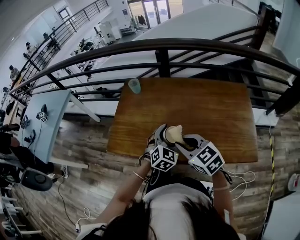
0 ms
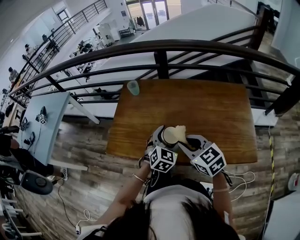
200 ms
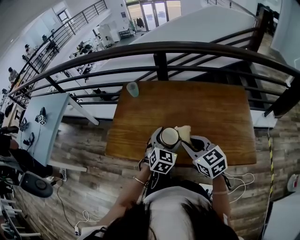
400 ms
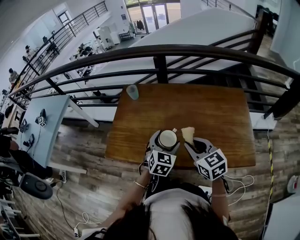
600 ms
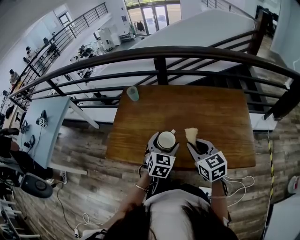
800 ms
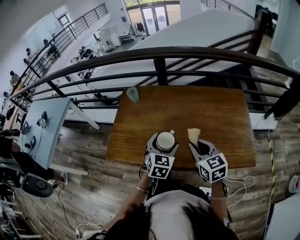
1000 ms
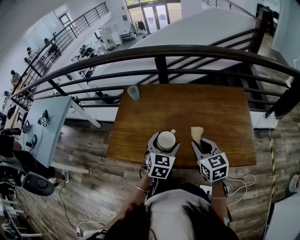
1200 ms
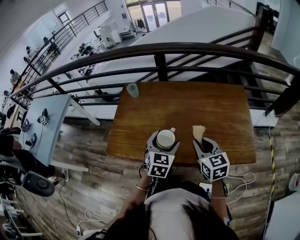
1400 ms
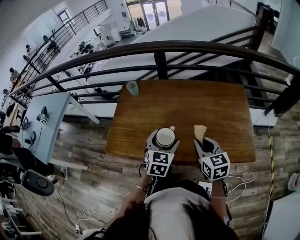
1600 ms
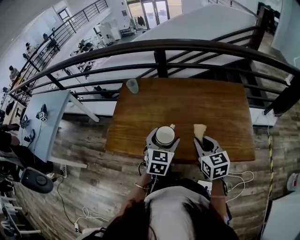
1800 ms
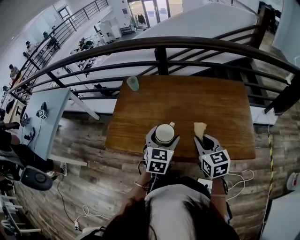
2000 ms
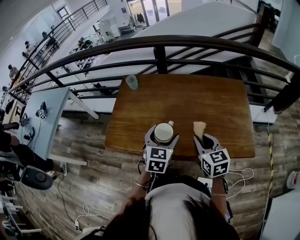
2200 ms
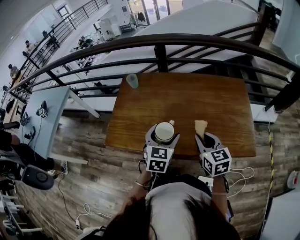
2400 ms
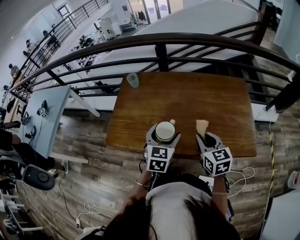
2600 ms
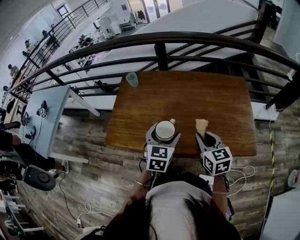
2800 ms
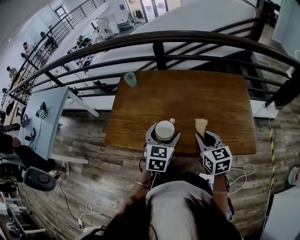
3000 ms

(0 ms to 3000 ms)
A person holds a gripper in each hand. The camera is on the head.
0 ms - 1600 ms: The left gripper shifts by roughly 5 cm, and changes its angle by roughly 20 degrees. Meanwhile the right gripper travels to the right by approximately 10 cm, and changes its angle by some 30 degrees.
1600 ms - 3000 ms: The grippers stay close to where they were, moving slightly.

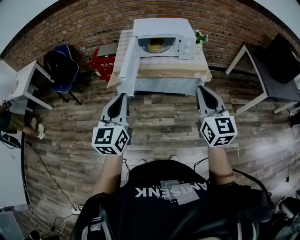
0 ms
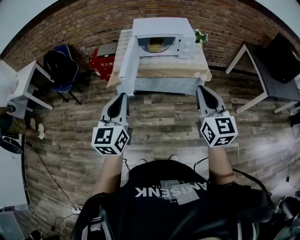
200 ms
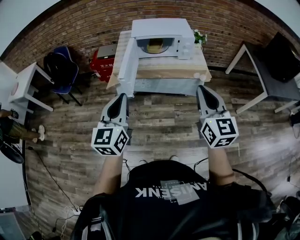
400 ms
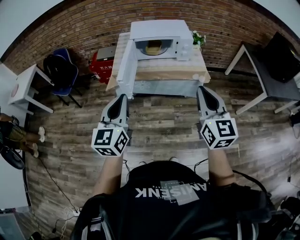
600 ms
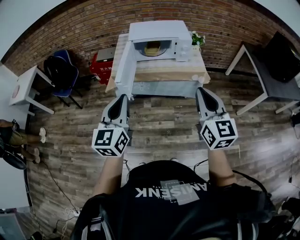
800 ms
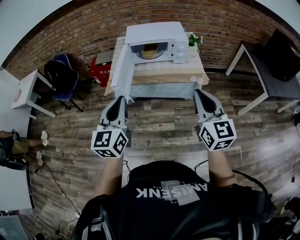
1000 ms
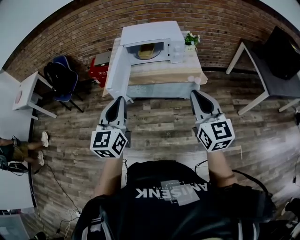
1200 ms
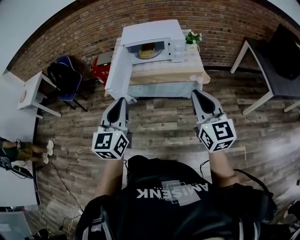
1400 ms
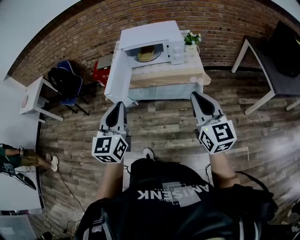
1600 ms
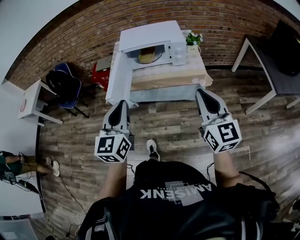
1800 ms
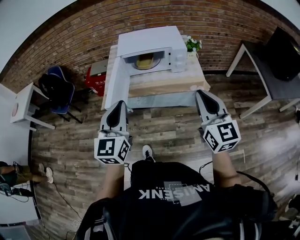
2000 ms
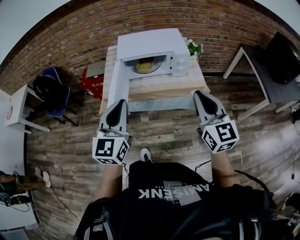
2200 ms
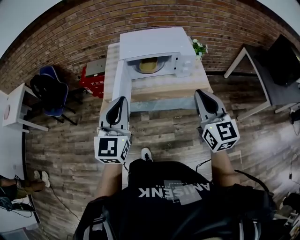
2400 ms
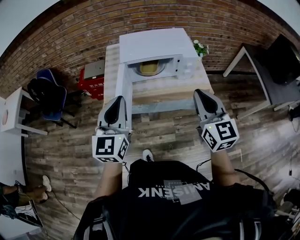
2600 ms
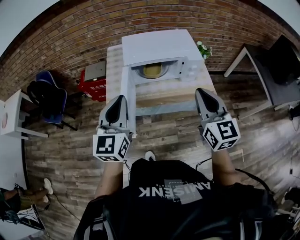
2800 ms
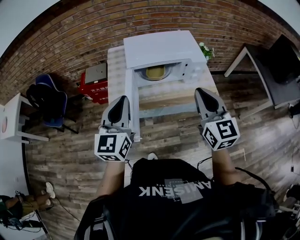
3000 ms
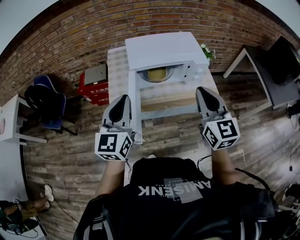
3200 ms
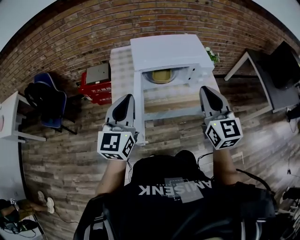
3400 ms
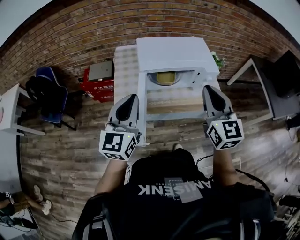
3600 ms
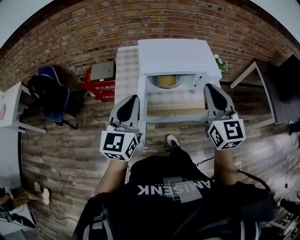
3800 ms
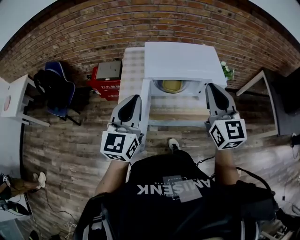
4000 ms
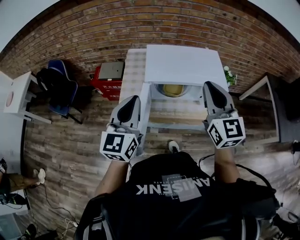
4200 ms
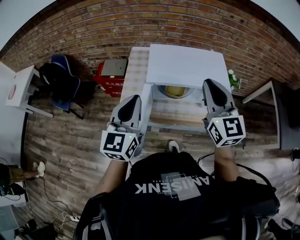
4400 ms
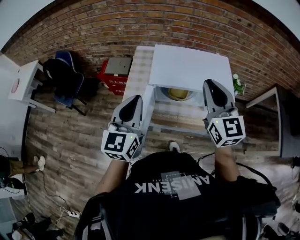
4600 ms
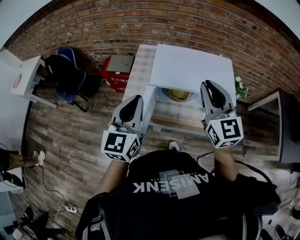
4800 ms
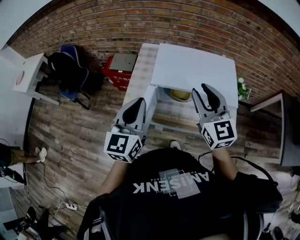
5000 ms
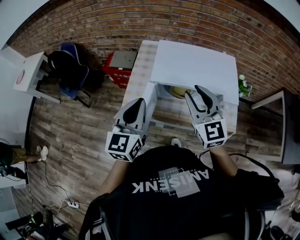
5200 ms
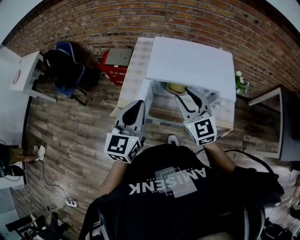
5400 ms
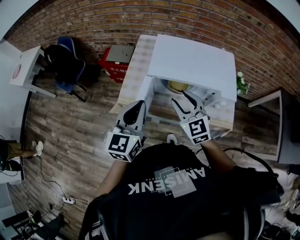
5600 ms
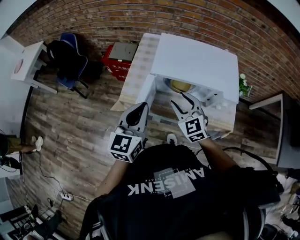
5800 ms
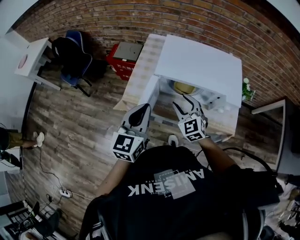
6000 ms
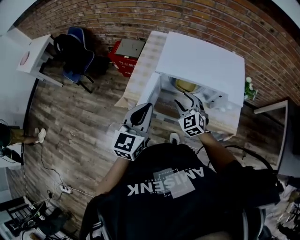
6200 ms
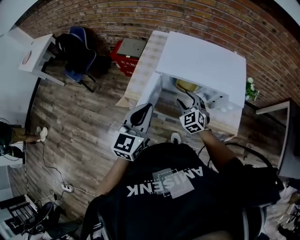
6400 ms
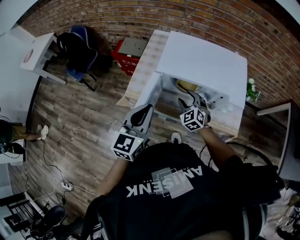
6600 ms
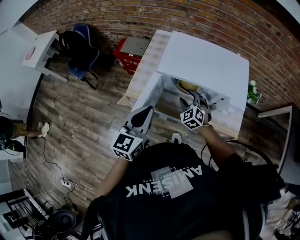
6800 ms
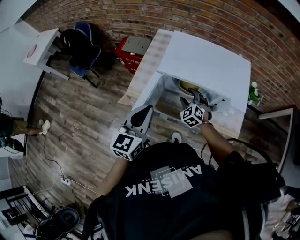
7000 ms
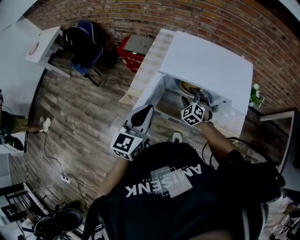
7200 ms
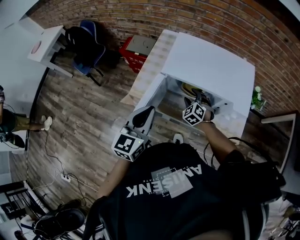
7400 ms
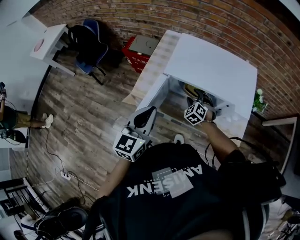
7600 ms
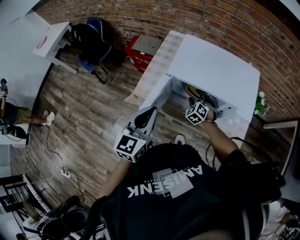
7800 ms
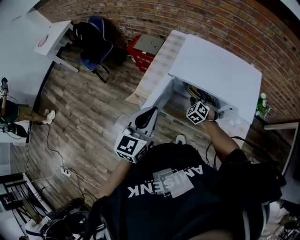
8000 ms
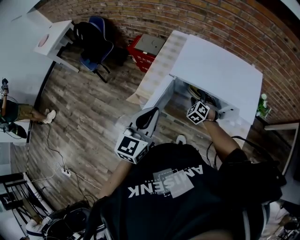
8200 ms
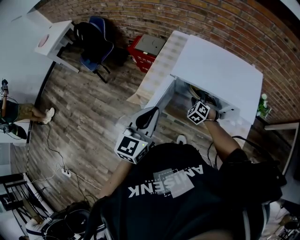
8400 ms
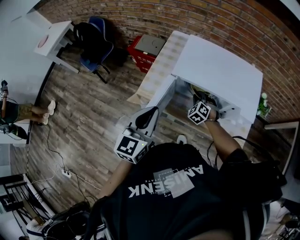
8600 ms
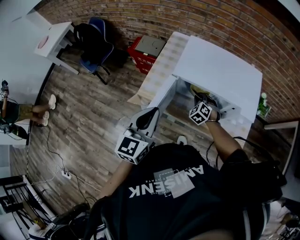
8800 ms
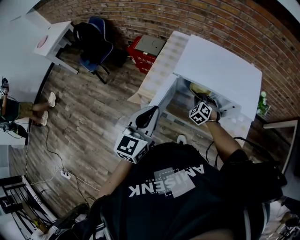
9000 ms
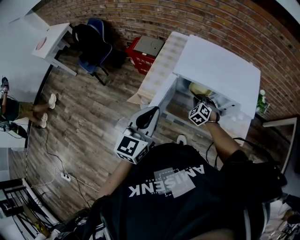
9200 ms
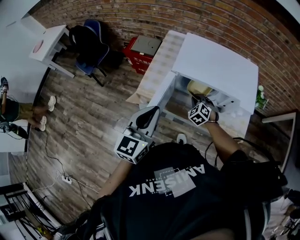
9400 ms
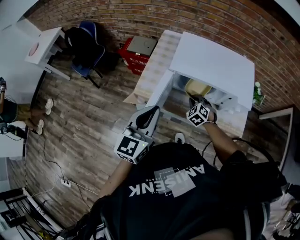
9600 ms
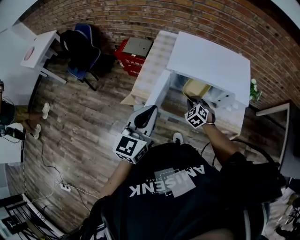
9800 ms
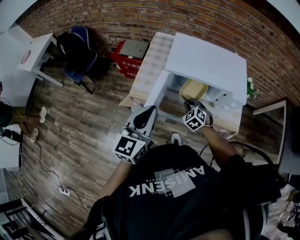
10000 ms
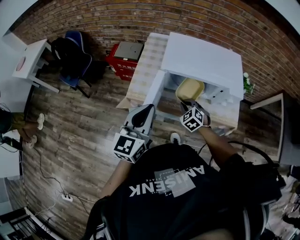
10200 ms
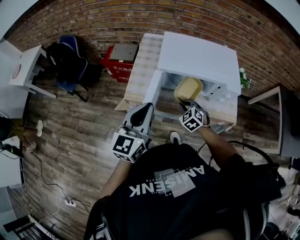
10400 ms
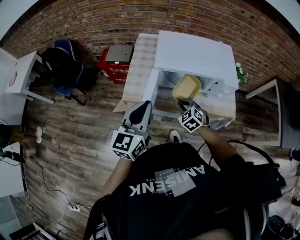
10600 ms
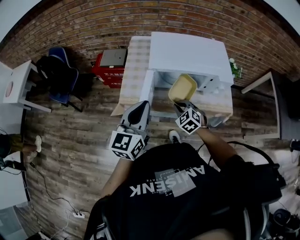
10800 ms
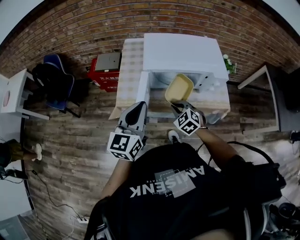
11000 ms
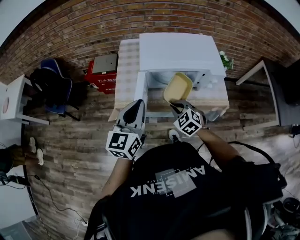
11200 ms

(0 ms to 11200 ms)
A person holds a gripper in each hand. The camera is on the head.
0 ms - 1600 ms: The grippers both shift to the right by some 15 cm.
1600 ms - 3200 ms: The two grippers go about 35 cm forward and to the left.
3200 ms - 4800 ms: The right gripper heads forward, covering approximately 20 cm, and changes its angle by some 20 degrees, while the left gripper shifts some 10 cm forward.
4800 ms - 6400 ms: The left gripper shifts about 10 cm downward and backward; the right gripper moves downward, roughly 30 cm, swivels about 40 degrees, and opens its fingers.
6400 ms - 8000 ms: The right gripper is displaced downward and forward by some 10 cm, and swivels roughly 20 degrees.
8000 ms - 9600 ms: The right gripper moves backward, about 5 cm, and closes up.
9600 ms - 11200 ms: The right gripper travels backward and upward by roughly 15 cm.

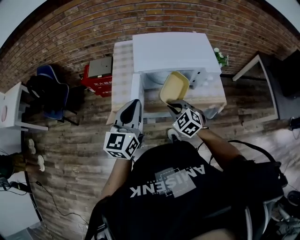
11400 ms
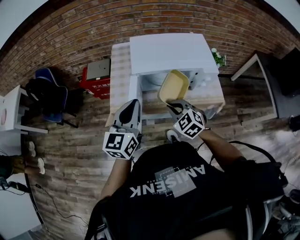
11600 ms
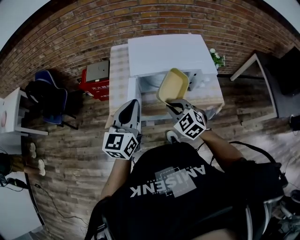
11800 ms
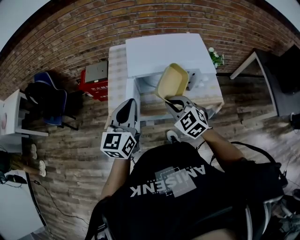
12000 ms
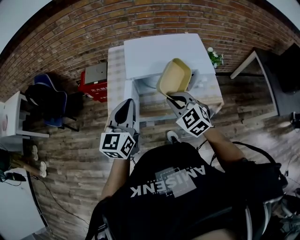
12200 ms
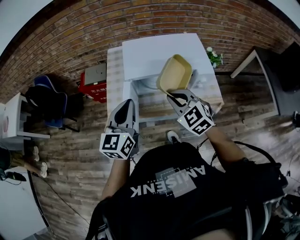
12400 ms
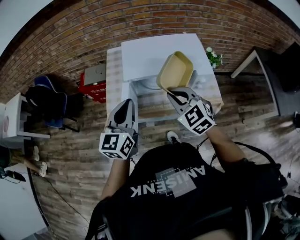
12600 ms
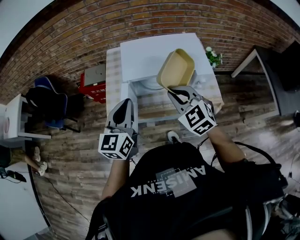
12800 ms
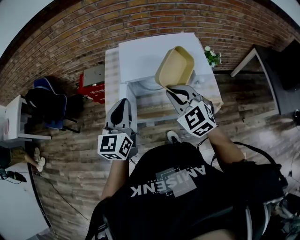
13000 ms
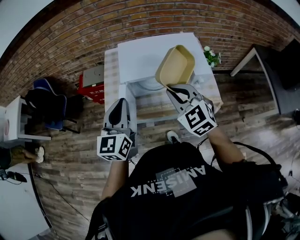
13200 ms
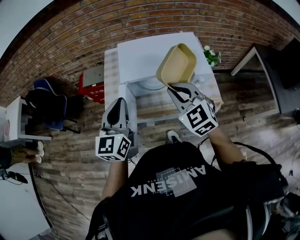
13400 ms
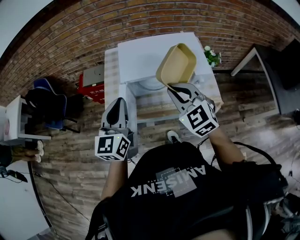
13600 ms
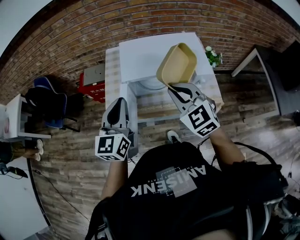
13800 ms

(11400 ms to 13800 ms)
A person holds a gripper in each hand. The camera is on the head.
11400 ms - 12600 ms: The right gripper is displaced upward and to the right by approximately 15 cm. The left gripper changes place by roughly 5 cm.
12600 ms - 13800 ms: The grippers stay close to where they were, moving slightly.

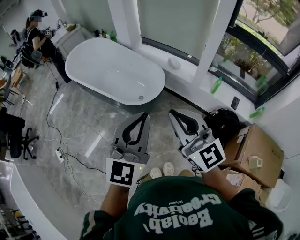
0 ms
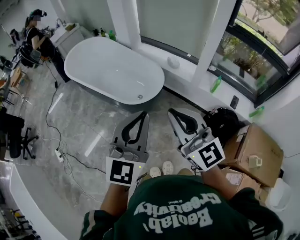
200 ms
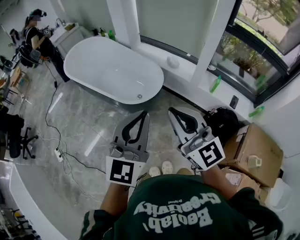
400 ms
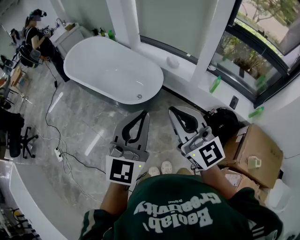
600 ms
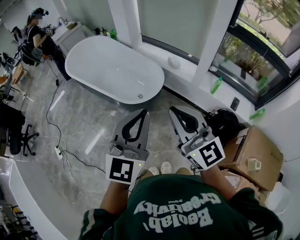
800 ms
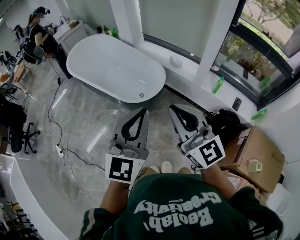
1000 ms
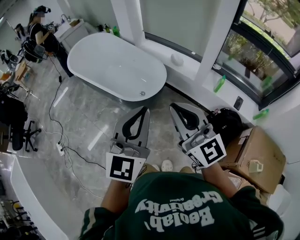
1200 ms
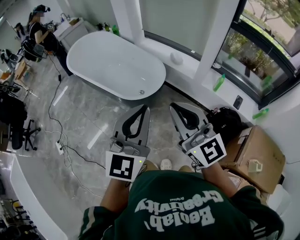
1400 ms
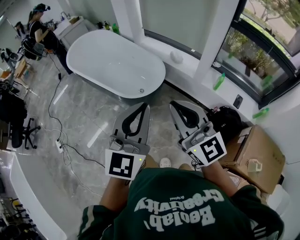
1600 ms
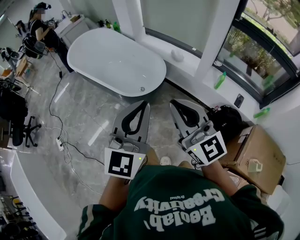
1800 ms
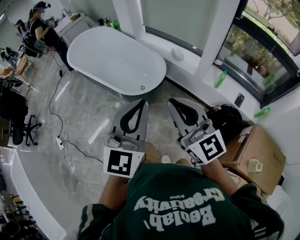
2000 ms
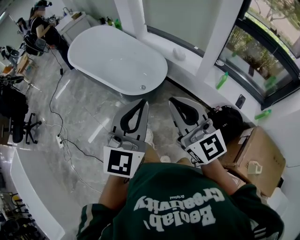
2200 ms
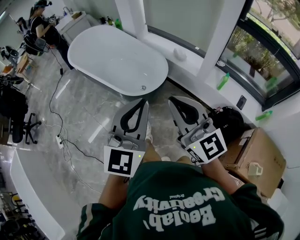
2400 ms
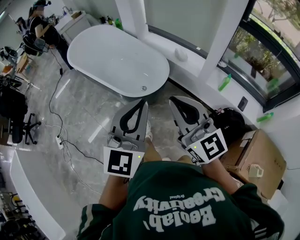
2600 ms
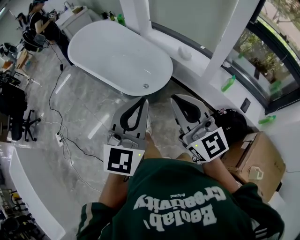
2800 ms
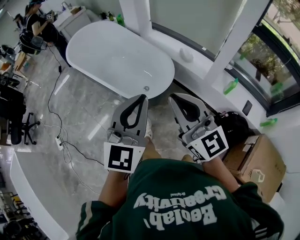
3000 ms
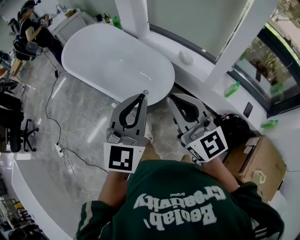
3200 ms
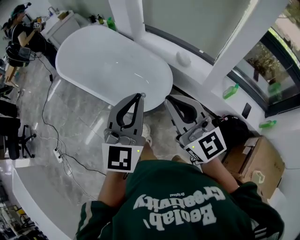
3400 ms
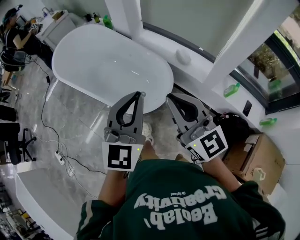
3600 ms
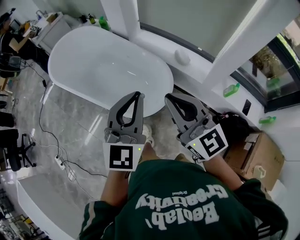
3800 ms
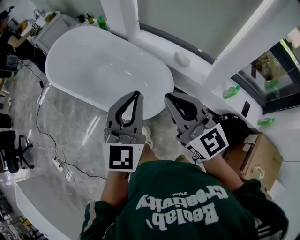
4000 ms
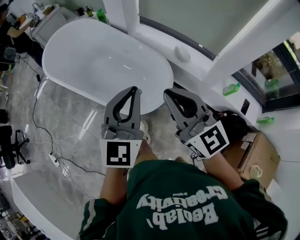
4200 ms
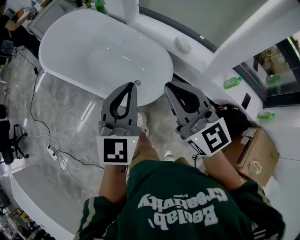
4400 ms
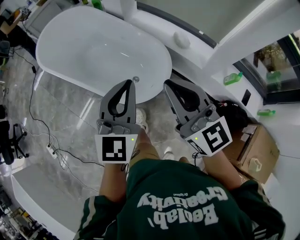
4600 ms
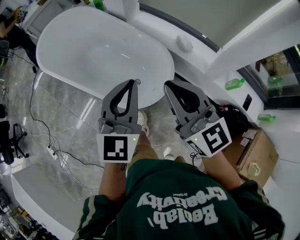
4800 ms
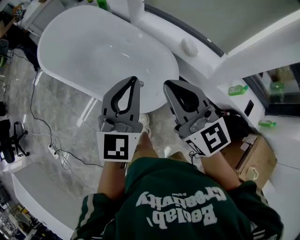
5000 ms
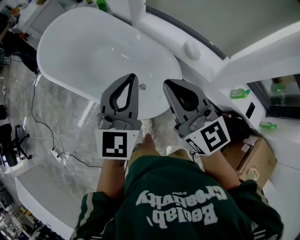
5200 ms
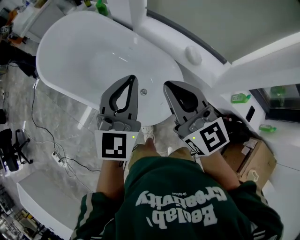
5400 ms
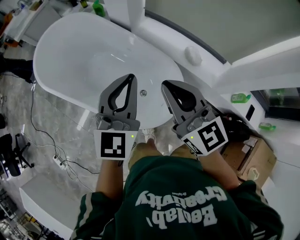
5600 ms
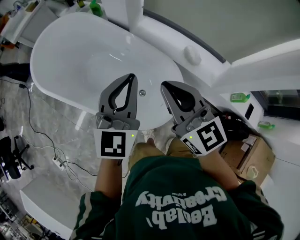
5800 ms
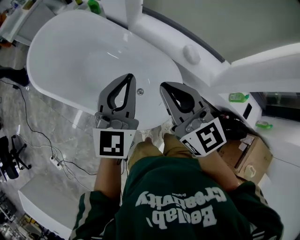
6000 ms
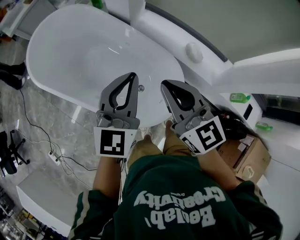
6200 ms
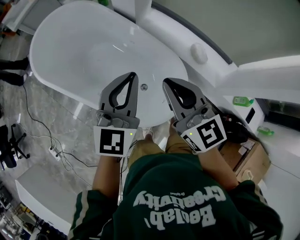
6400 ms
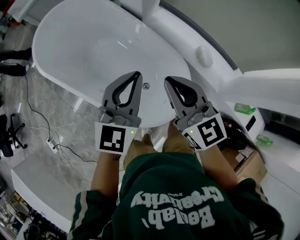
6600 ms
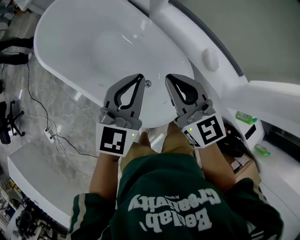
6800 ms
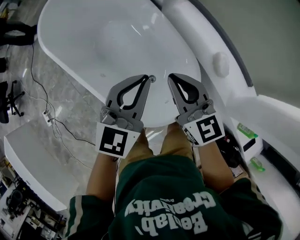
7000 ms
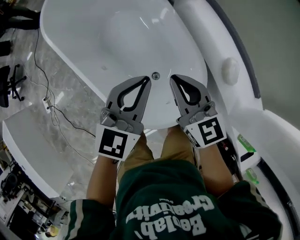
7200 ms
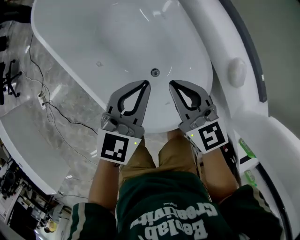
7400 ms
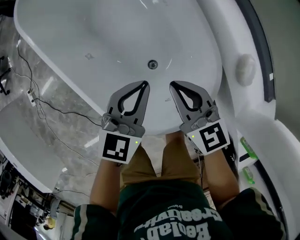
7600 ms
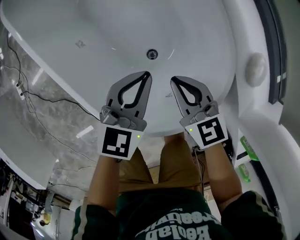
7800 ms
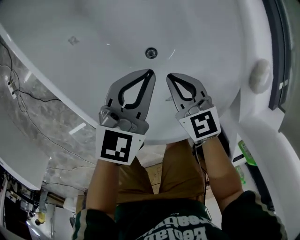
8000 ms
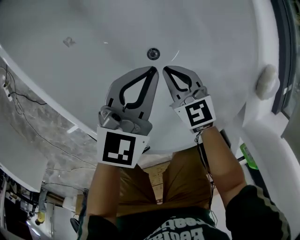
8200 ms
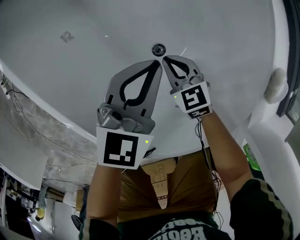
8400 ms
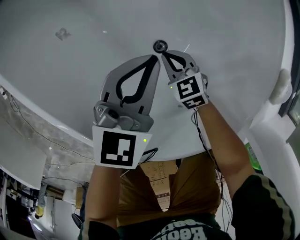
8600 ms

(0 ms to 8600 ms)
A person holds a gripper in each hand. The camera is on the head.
0 ms - 1400 ms: The left gripper ends up about 5 cm from where it was, while the right gripper ends up about 5 cm from where it was.
1400 ms - 2800 ms: Both grippers travel together forward, approximately 5 cm.
2800 ms - 4400 ms: The grippers both shift forward by approximately 25 cm.
4400 ms - 5800 ms: The grippers both shift forward by about 25 cm.
5800 ms - 7200 ms: The right gripper travels downward and forward by approximately 25 cm, and changes its angle by about 20 degrees. Meanwhile the left gripper goes approximately 15 cm downward.
7200 ms - 8600 ms: The two grippers go some 50 cm downward. The right gripper tips its fingers downward by approximately 40 degrees.
